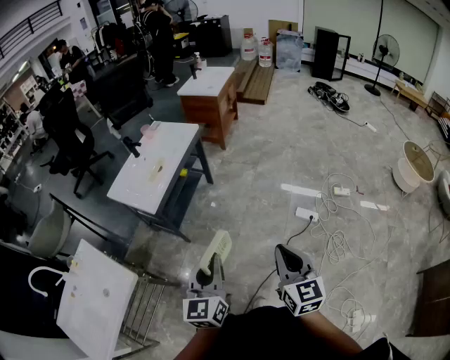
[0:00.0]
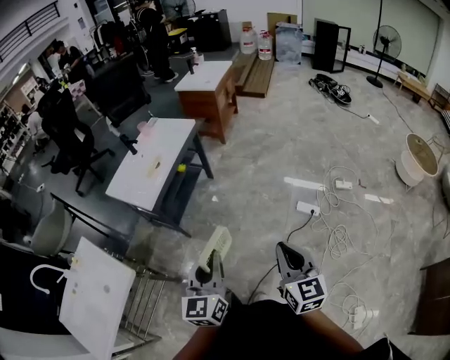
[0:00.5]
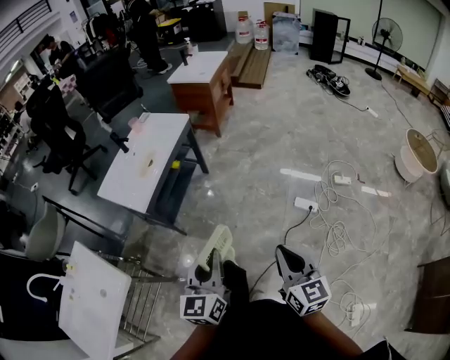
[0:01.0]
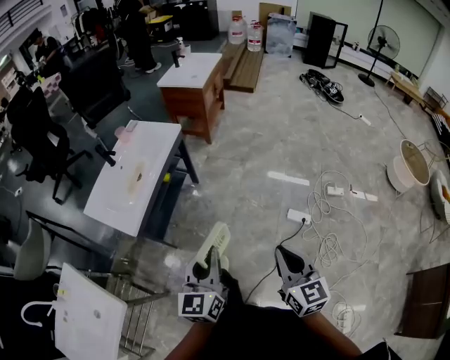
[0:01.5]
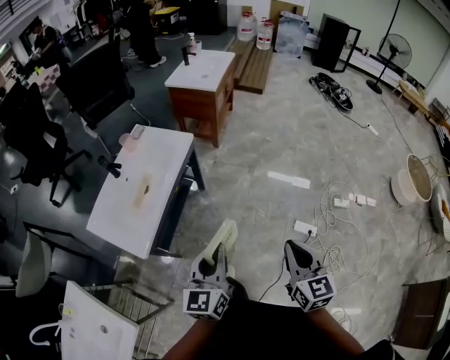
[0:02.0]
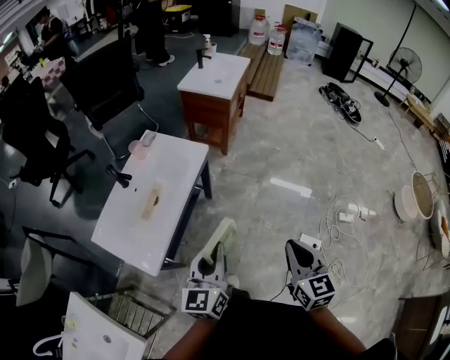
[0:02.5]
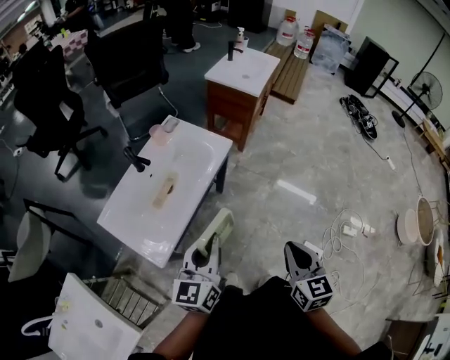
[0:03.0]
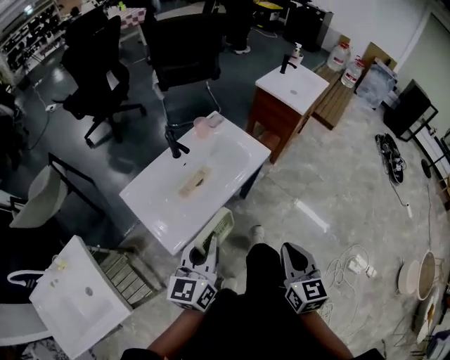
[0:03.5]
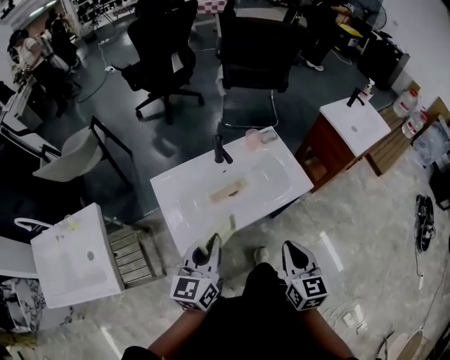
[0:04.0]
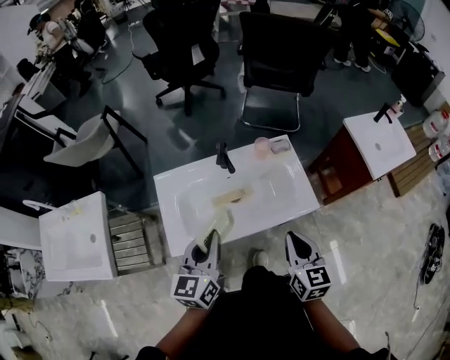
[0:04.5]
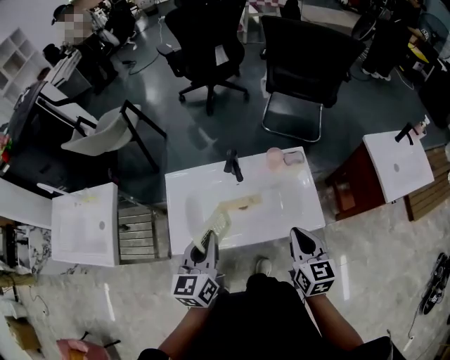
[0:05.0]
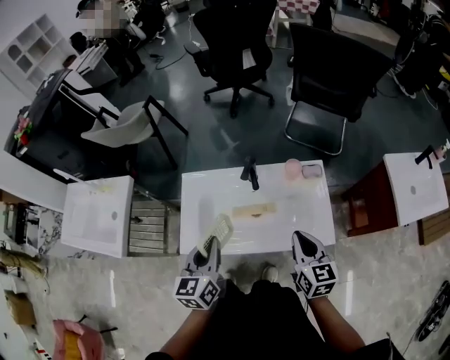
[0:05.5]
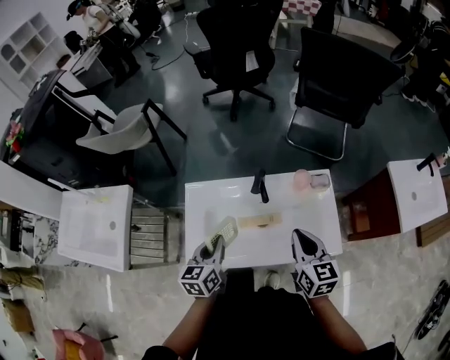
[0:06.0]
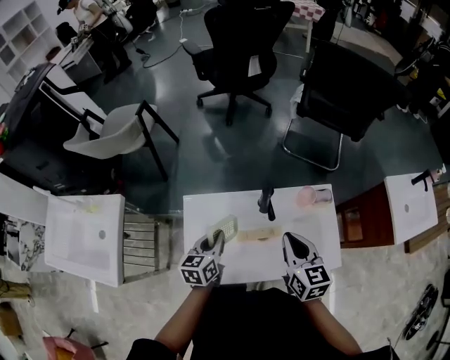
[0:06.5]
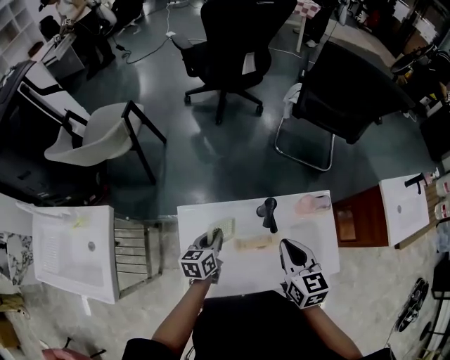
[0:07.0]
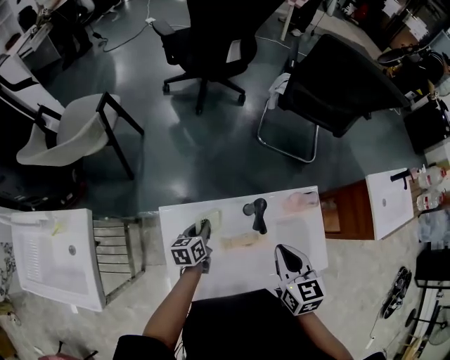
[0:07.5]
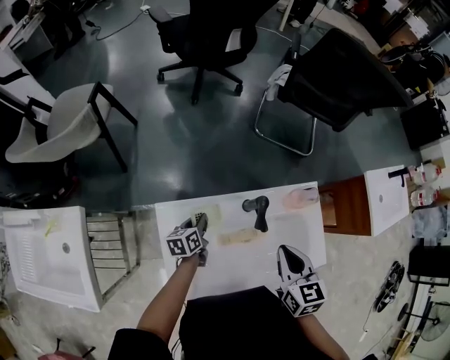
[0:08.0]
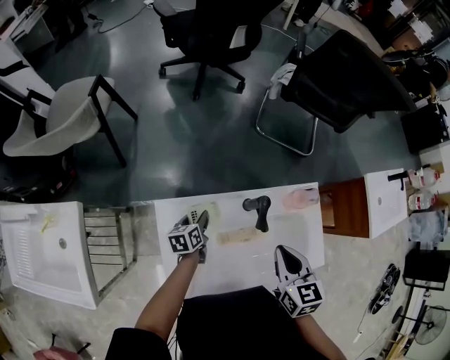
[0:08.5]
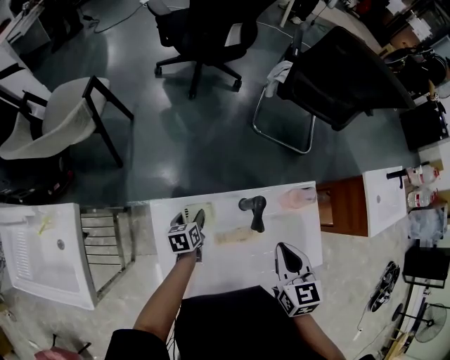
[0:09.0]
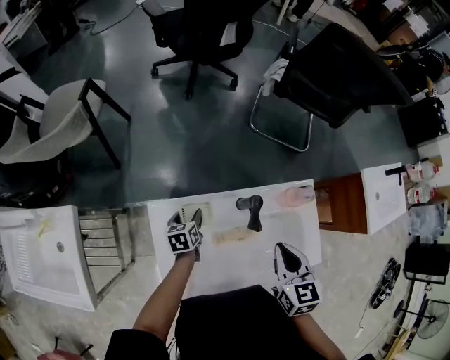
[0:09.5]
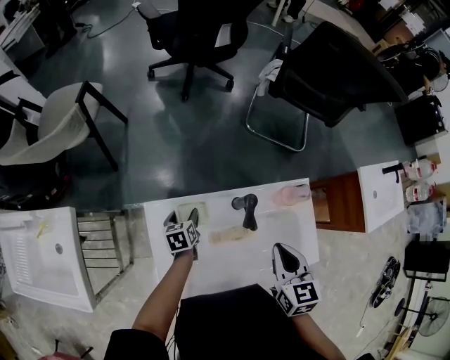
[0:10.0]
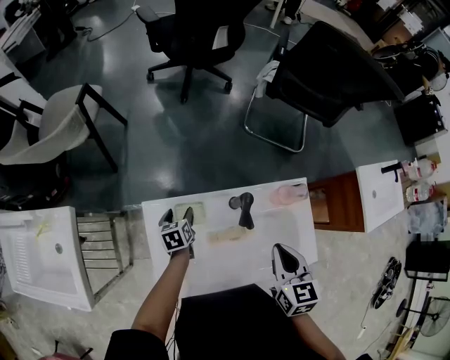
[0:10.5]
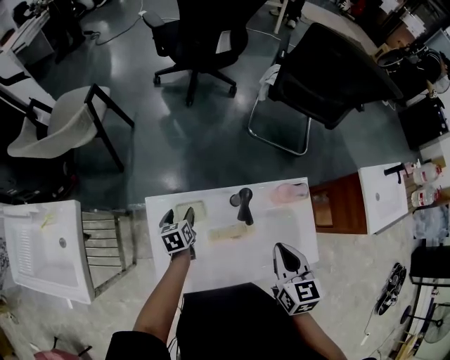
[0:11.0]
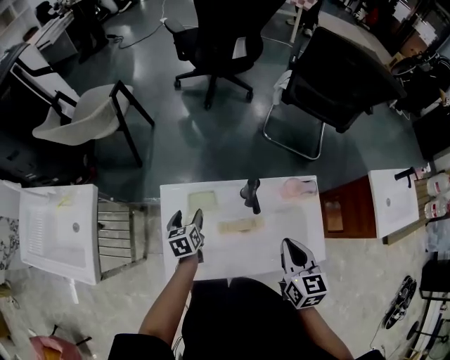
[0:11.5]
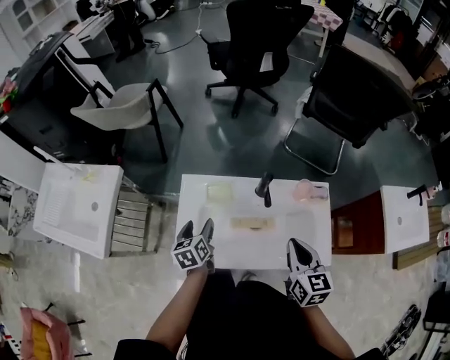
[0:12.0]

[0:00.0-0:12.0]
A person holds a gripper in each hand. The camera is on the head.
0:00.0 to 0:02.0: Both grippers travel together forward, about 35 cm.
0:02.0 to 0:04.0: The right gripper ends up about 40 cm from where it was, and swivels roughly 40 degrees; the left gripper moves about 30 cm, and changes its angle by approximately 40 degrees.
0:04.0 to 0:06.0: The left gripper shifts by about 20 cm, and changes its angle by roughly 30 degrees, while the right gripper ends up roughly 25 cm from where it was, and rotates some 30 degrees.
0:06.0 to 0:08.0: The right gripper heads to the left and forward, covering some 15 cm. Meanwhile the left gripper moves downward and forward, some 30 cm, and turns by some 30 degrees.
0:08.0 to 0:10.0: The left gripper opens up.
0:10.0 to 0:12.0: The right gripper travels backward by approximately 10 cm; the left gripper shifts roughly 25 cm backward and upward, and rotates some 20 degrees.

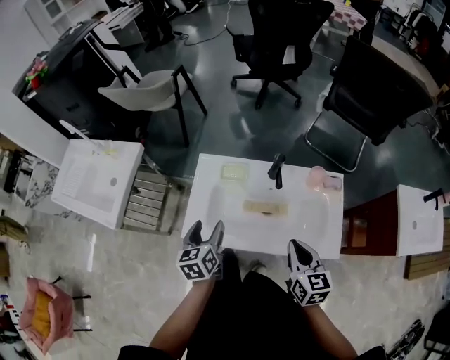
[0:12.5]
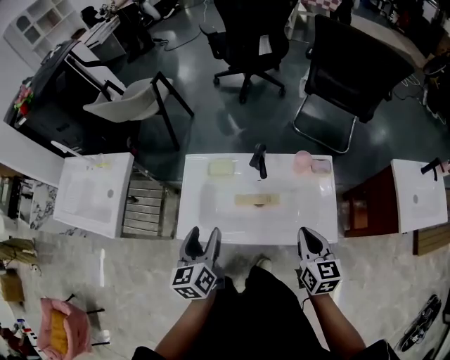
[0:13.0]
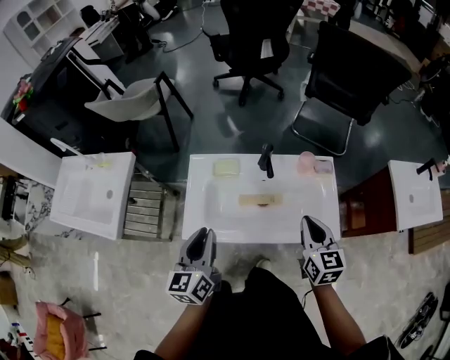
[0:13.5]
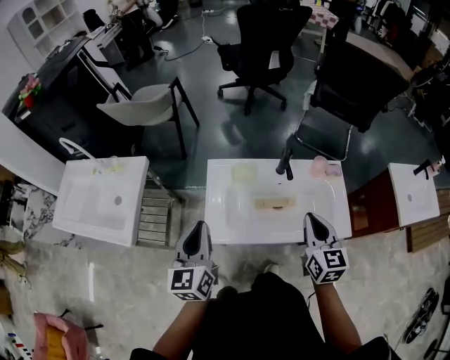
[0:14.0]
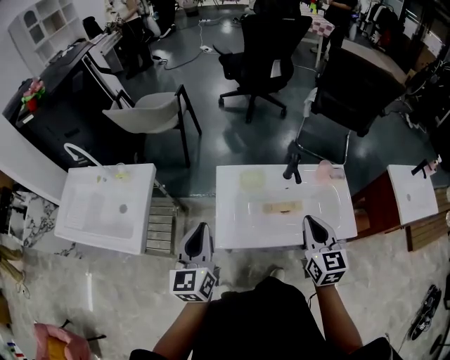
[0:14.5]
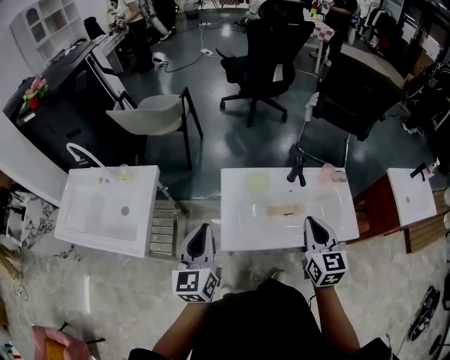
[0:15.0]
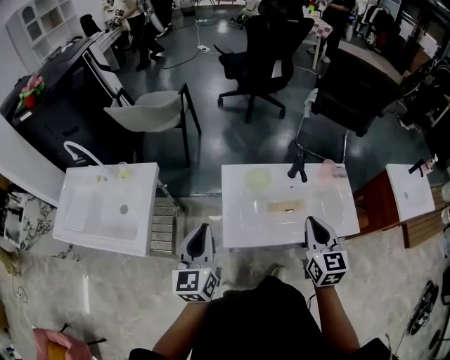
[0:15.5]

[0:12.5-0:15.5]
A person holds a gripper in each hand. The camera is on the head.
0:12.5 to 0:14.0: The left gripper travels upward and to the left by approximately 20 cm, rotates some 30 degrees, and closes its fingers, while the right gripper heads upward and to the left, covering about 10 cm.
0:14.0 to 0:15.5: Both grippers move to the left, approximately 10 cm.

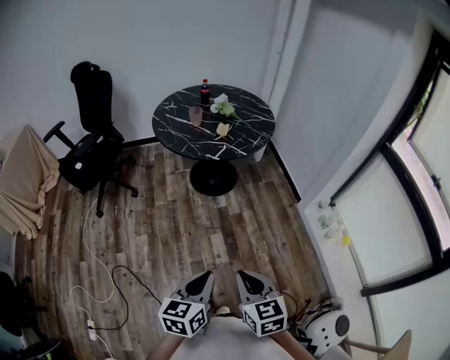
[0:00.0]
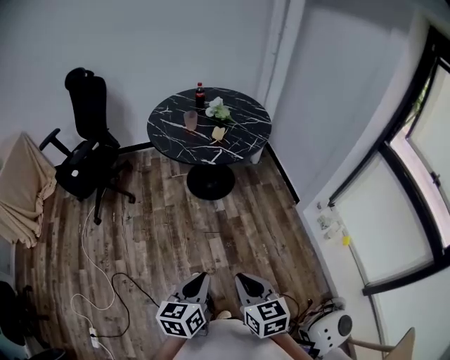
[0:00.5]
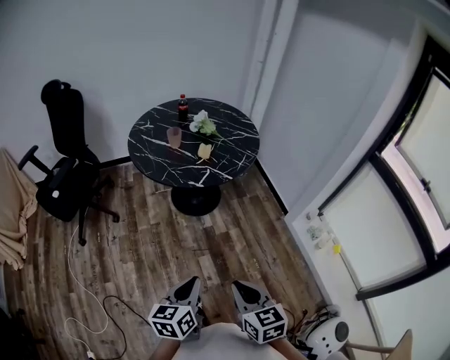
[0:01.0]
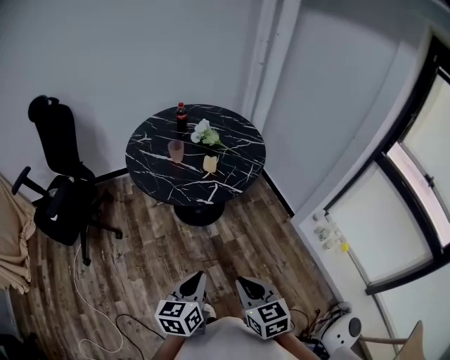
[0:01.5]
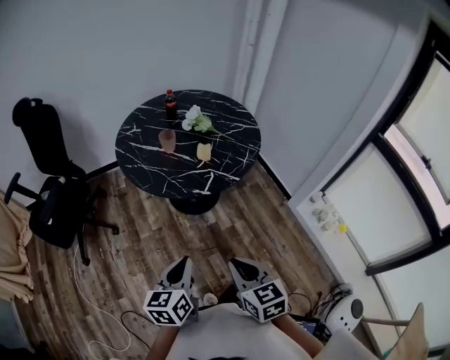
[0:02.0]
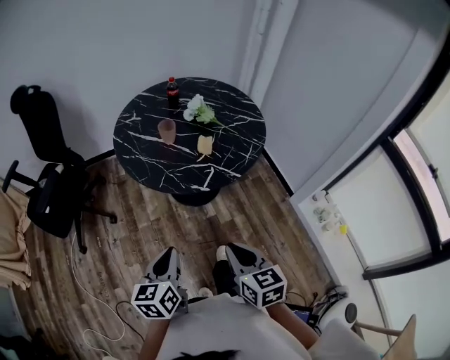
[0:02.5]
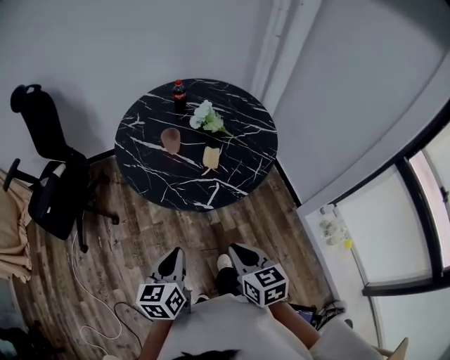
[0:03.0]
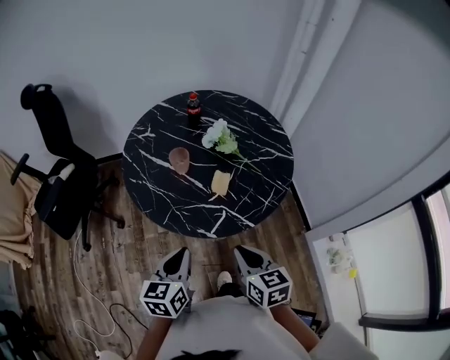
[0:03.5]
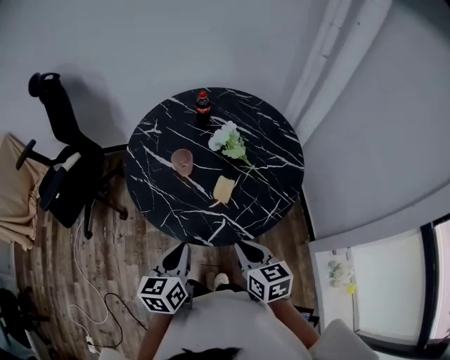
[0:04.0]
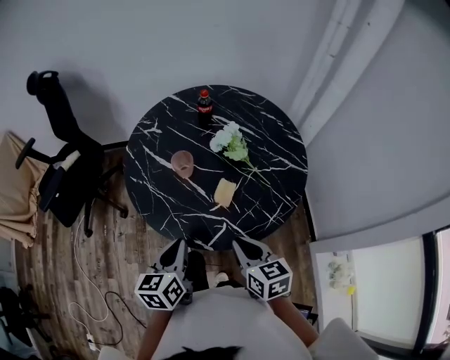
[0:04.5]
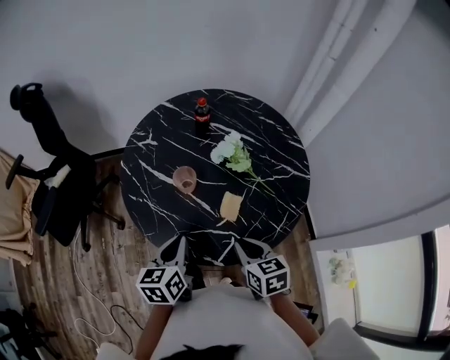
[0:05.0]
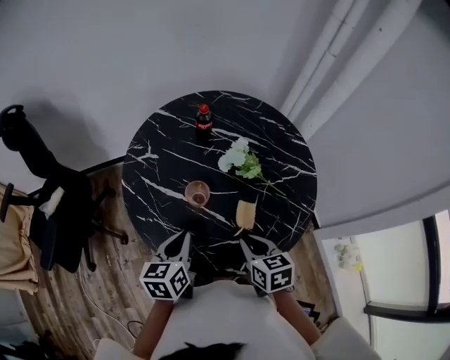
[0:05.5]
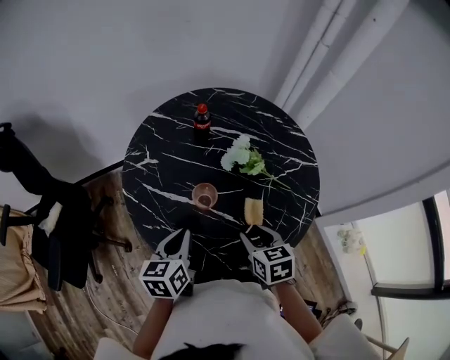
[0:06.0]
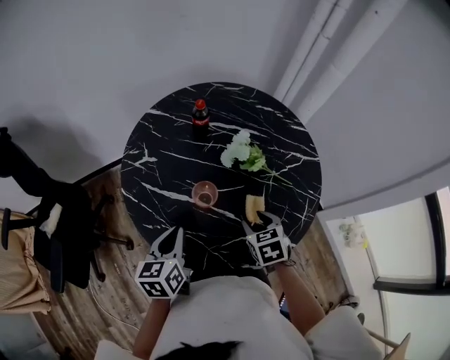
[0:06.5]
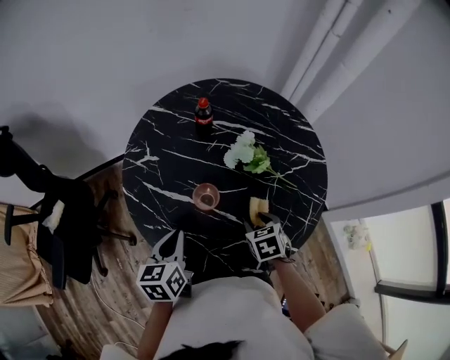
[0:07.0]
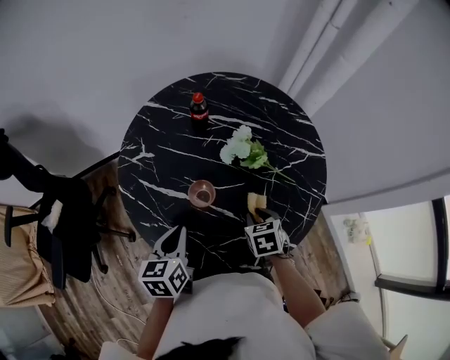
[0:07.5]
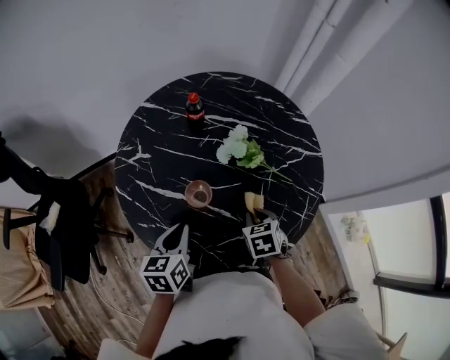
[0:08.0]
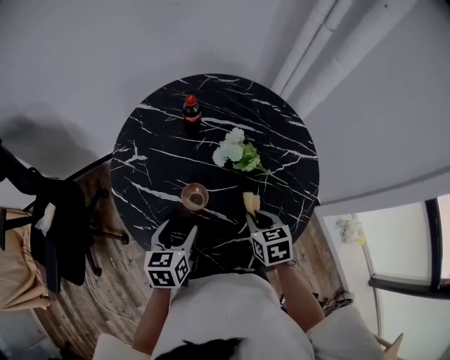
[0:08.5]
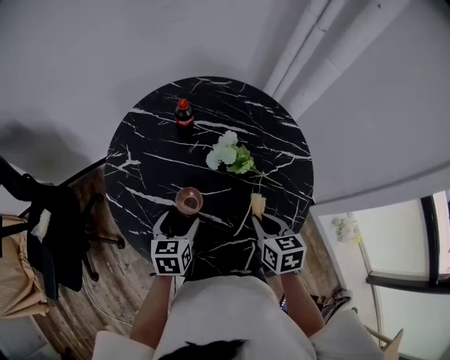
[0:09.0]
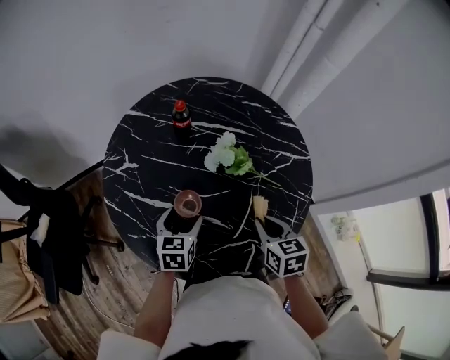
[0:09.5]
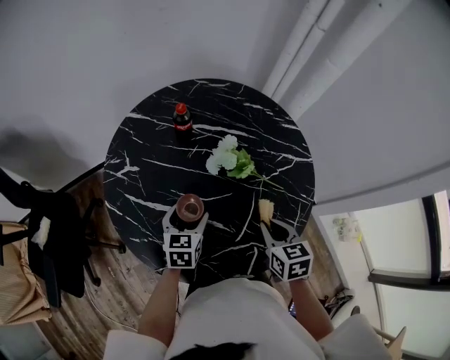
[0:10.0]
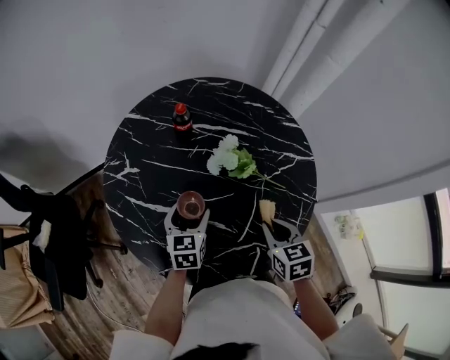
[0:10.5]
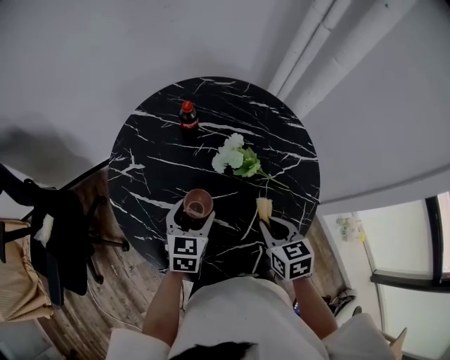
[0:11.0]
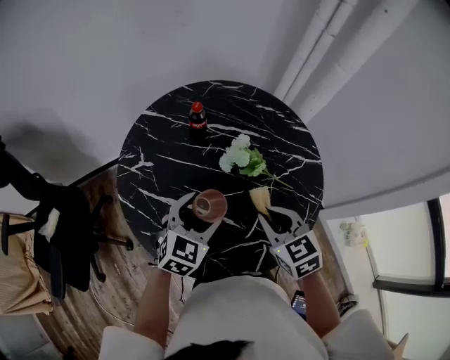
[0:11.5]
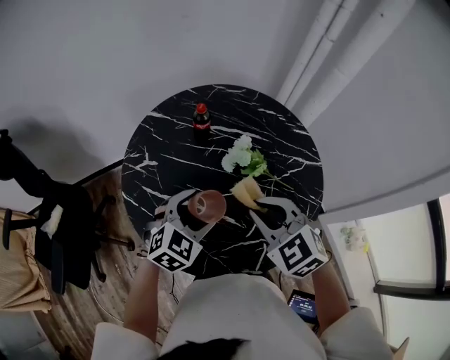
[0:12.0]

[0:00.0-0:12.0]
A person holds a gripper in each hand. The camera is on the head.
0:00.0 to 0:02.0: The right gripper shifts some 25 cm forward. Meanwhile the left gripper is displaced forward and to the left by some 30 cm.
0:02.0 to 0:04.0: The two grippers go about 25 cm forward.
0:04.0 to 0:06.0: The grippers both shift forward and to the left by some 20 cm. The right gripper swivels some 20 degrees, and opens up.
0:06.0 to 0:08.0: The right gripper heads downward and forward, covering about 10 cm, and closes up.
0:08.0 to 0:10.0: The left gripper goes about 10 cm forward and downward, and opens up. The right gripper goes roughly 10 cm upward.
0:10.0 to 0:12.0: The right gripper goes some 15 cm upward and to the left, and rotates around the line of its fingers by some 50 degrees, counterclockwise from behind, while the left gripper shifts about 10 cm upward, and twists about 40 degrees clockwise, seen from behind.
